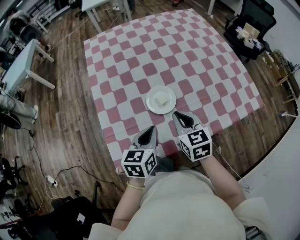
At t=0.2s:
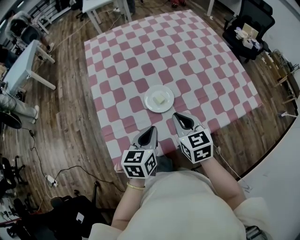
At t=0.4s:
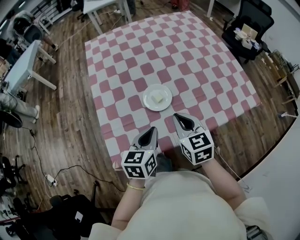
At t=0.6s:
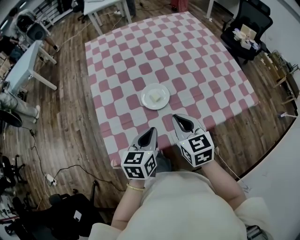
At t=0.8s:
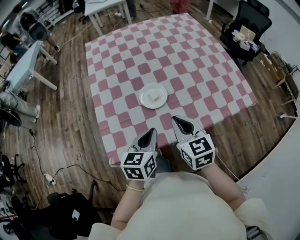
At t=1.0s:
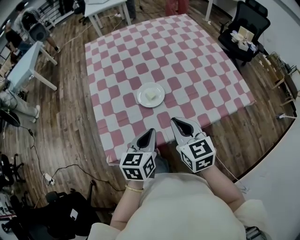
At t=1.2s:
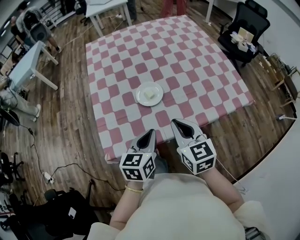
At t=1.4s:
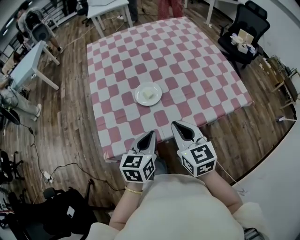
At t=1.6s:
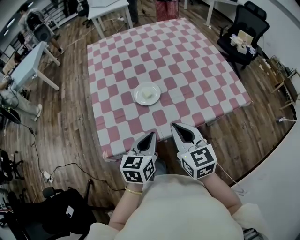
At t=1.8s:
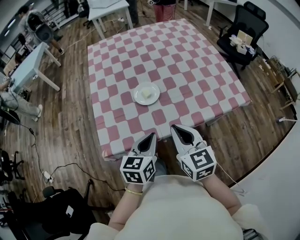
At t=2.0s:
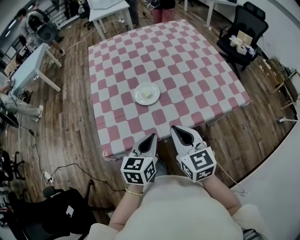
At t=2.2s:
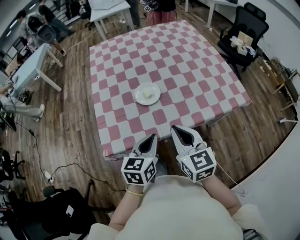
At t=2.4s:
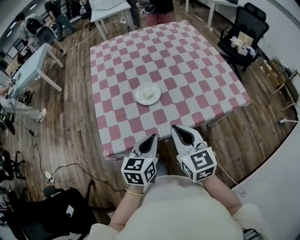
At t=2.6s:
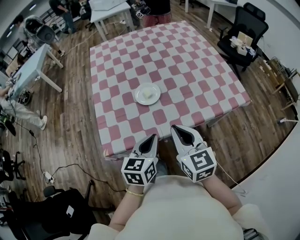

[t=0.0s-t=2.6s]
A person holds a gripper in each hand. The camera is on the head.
t=0.0s to t=1.2s: The right gripper moves backward, upward and to the right, approximately 15 cm; the left gripper heads backward and to the right, covering about 10 cm.
t=1.2s to t=2.6s: Both grippers move backward, some 5 cm.

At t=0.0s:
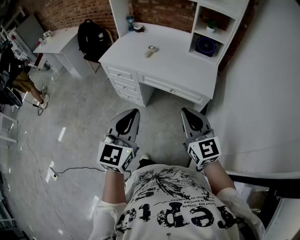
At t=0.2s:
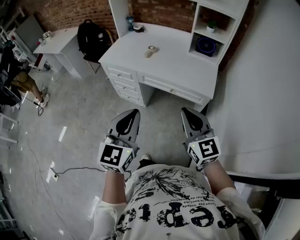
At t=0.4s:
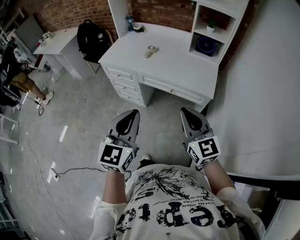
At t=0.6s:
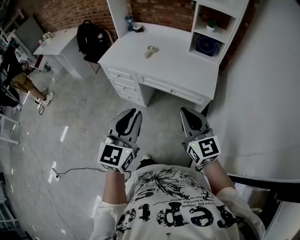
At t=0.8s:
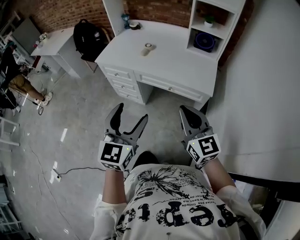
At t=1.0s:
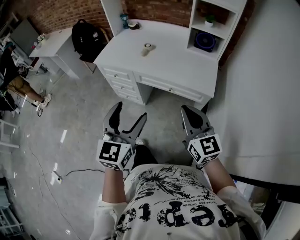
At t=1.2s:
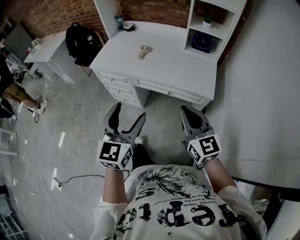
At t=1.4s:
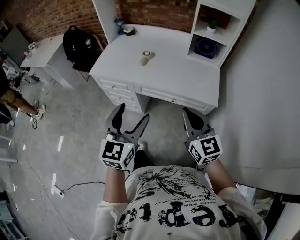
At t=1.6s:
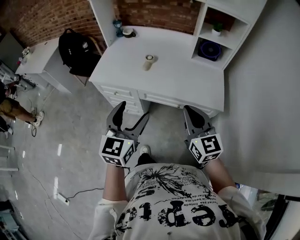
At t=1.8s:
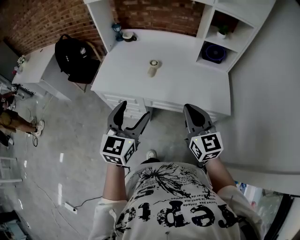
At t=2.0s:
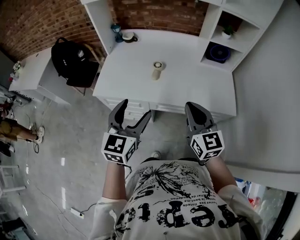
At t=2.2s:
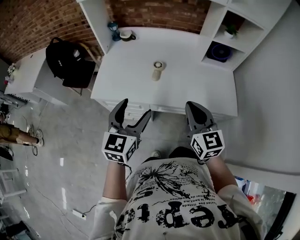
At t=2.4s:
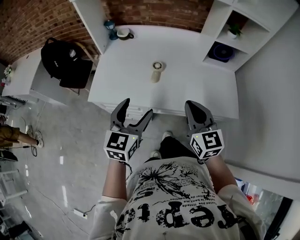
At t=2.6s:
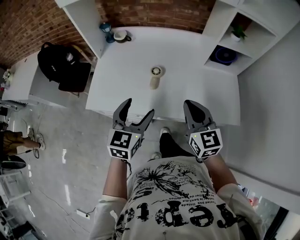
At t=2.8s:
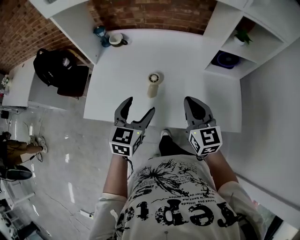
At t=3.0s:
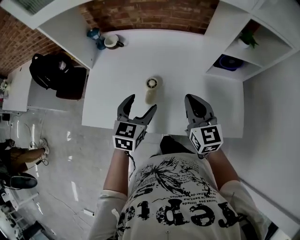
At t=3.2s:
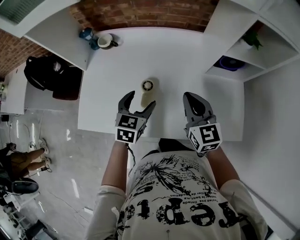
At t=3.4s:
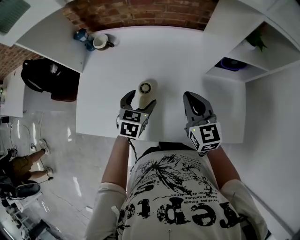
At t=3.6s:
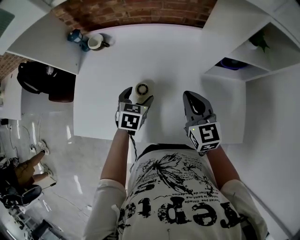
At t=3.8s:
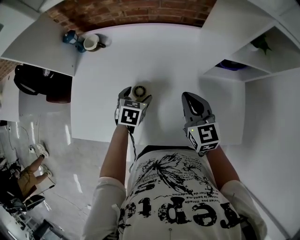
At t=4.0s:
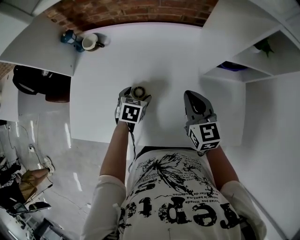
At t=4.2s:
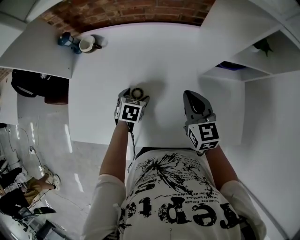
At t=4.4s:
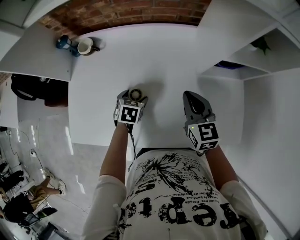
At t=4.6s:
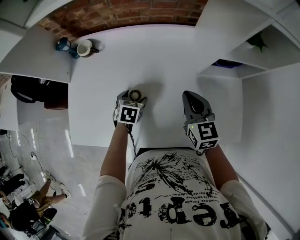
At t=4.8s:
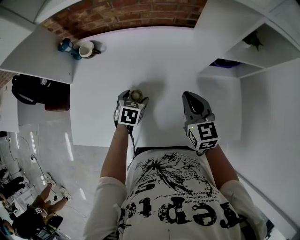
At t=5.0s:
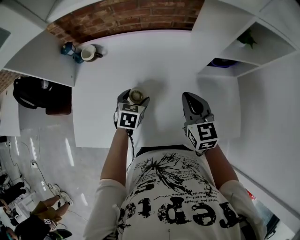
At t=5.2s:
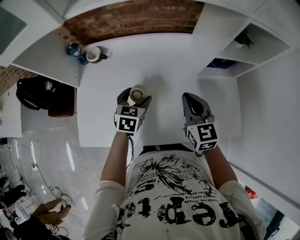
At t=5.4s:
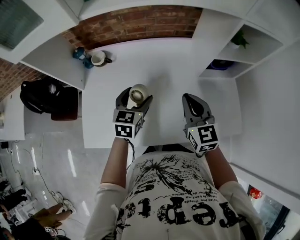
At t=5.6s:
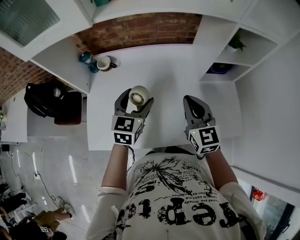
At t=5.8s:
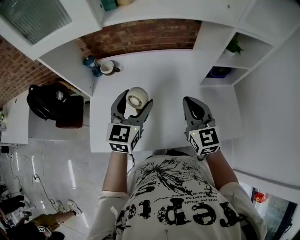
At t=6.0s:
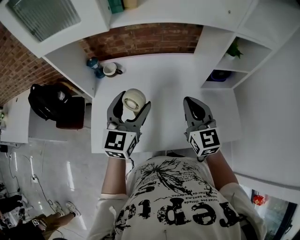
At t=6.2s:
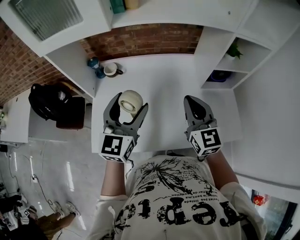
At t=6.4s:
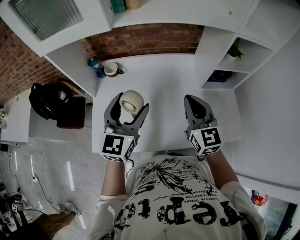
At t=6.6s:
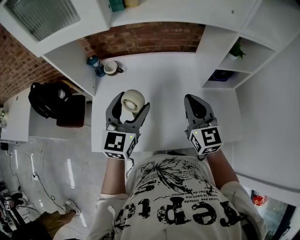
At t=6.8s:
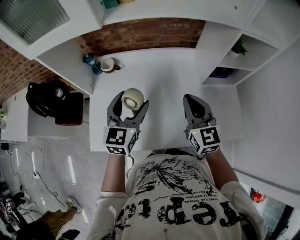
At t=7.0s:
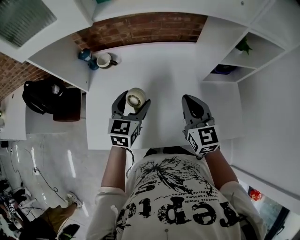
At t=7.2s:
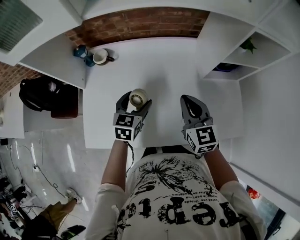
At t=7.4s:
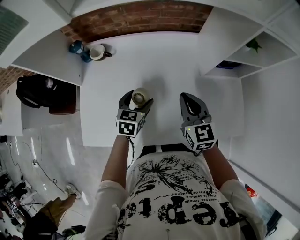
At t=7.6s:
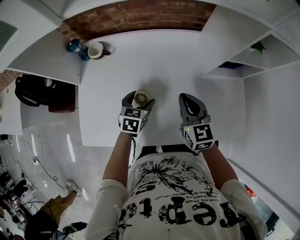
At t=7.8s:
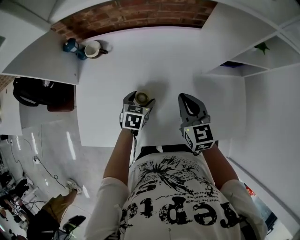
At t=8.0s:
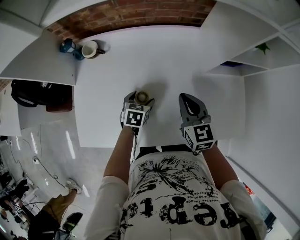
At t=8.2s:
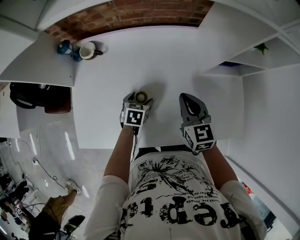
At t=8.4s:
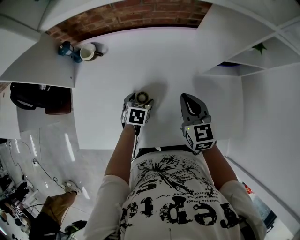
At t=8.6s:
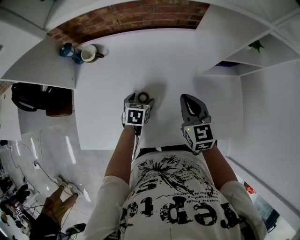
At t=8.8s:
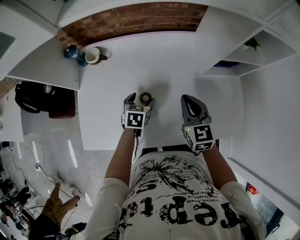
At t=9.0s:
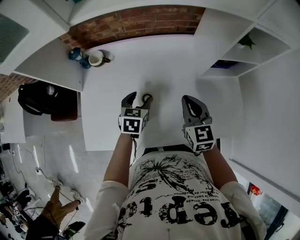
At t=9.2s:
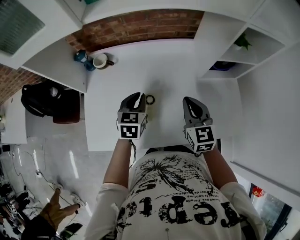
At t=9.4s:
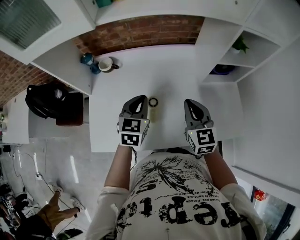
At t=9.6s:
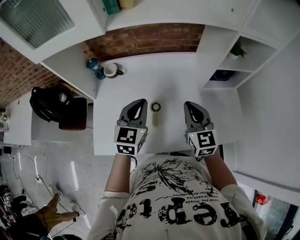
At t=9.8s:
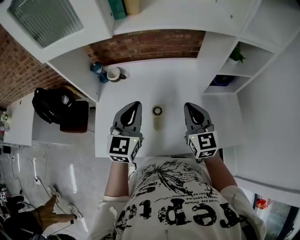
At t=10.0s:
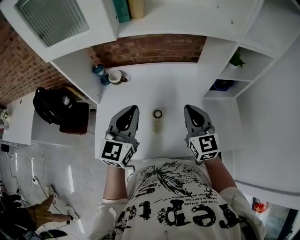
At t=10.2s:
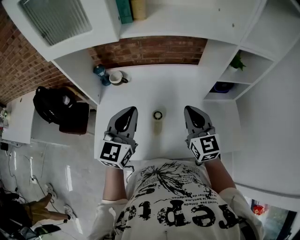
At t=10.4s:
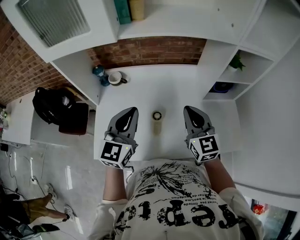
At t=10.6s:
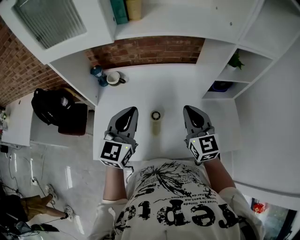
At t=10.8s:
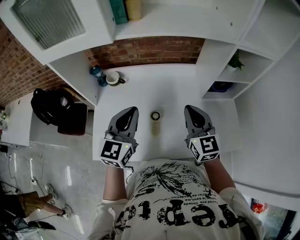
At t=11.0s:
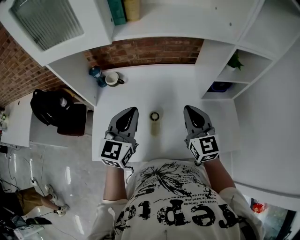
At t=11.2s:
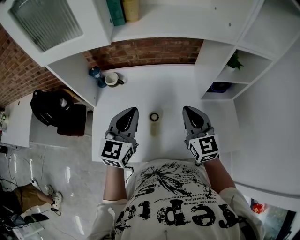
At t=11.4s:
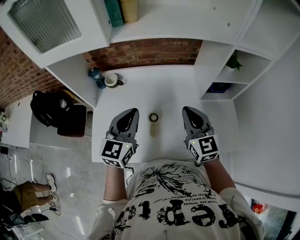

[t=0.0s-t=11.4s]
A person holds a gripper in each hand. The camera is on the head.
t=0.0s to t=1.4s: Both grippers move forward, roughly 15 cm. The left gripper opens.
t=1.4s to t=2.8s: The pair of grippers is taken forward, about 50 cm. The left gripper turns by some 20 degrees.
t=2.8s to t=4.2s: The right gripper shifts about 20 cm forward and downward, while the left gripper shifts approximately 35 cm downward and forward, and tilts its fingers roughly 40 degrees downward.
t=4.2s to t=5.6s: The left gripper goes about 25 cm upward, and points its fingers roughly 40 degrees further upward, while the right gripper heads upward, backward and to the left, covering approximately 15 cm.
t=5.6s to t=7.2s: The left gripper shifts about 10 cm downward. The right gripper changes place by about 5 cm.
t=7.2s to t=8.6s: The left gripper heads downward, covering about 15 cm, and turns by some 30 degrees. Meanwhile the right gripper moves downward, approximately 5 cm.
t=8.6s to t=10.0s: The left gripper goes some 35 cm upward, tips its fingers upward by roughly 50 degrees, and closes its fingers, while the right gripper heads upward and backward, covering about 15 cm.
t=10.0s to t=11.4s: The grippers stay close to where they were, moving slightly.

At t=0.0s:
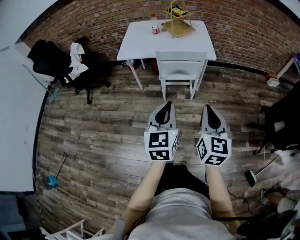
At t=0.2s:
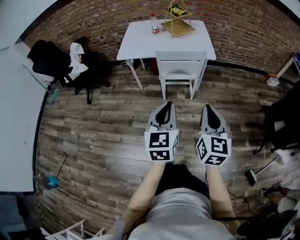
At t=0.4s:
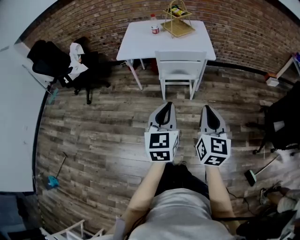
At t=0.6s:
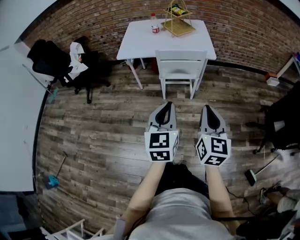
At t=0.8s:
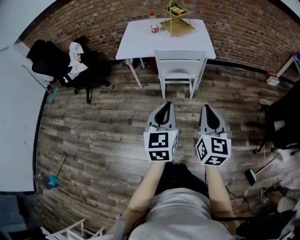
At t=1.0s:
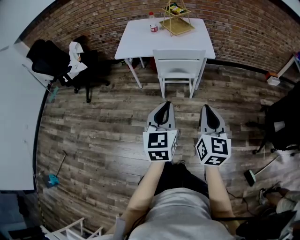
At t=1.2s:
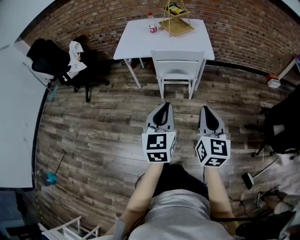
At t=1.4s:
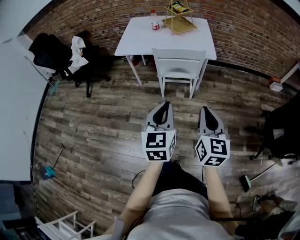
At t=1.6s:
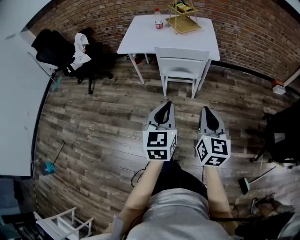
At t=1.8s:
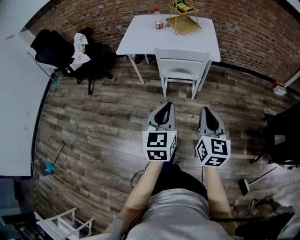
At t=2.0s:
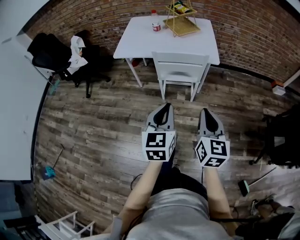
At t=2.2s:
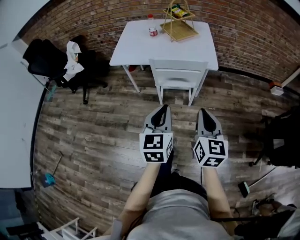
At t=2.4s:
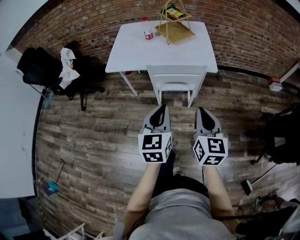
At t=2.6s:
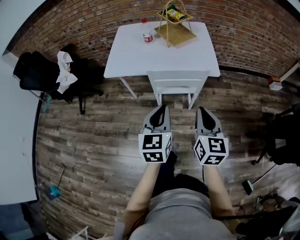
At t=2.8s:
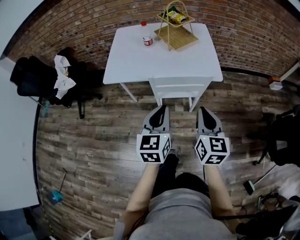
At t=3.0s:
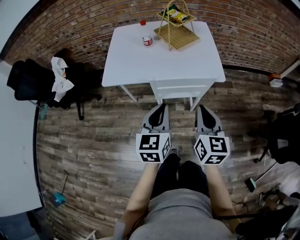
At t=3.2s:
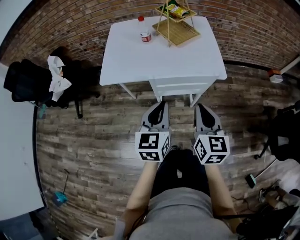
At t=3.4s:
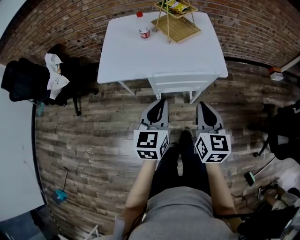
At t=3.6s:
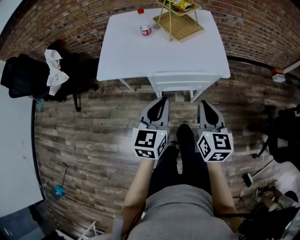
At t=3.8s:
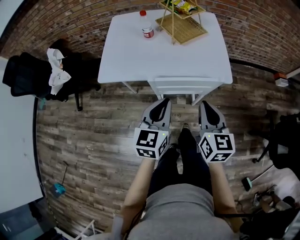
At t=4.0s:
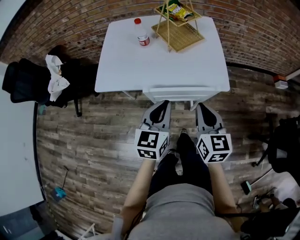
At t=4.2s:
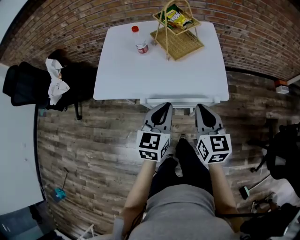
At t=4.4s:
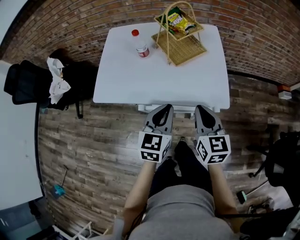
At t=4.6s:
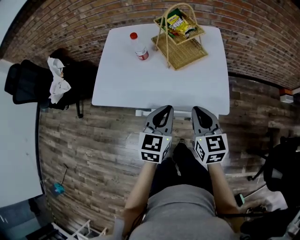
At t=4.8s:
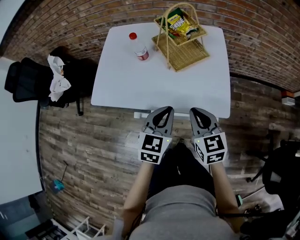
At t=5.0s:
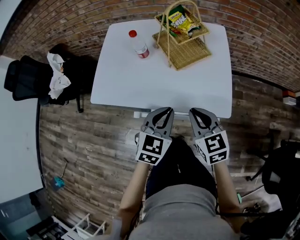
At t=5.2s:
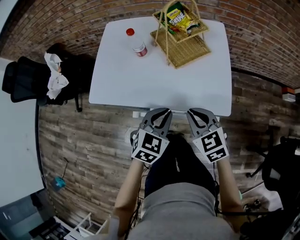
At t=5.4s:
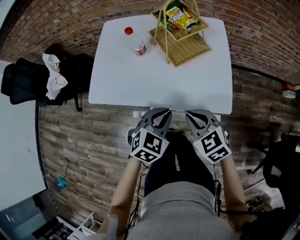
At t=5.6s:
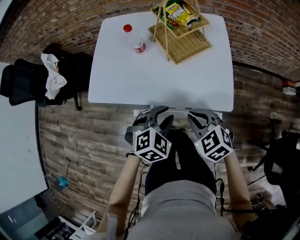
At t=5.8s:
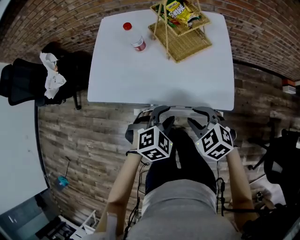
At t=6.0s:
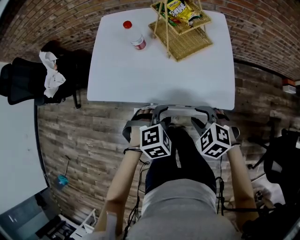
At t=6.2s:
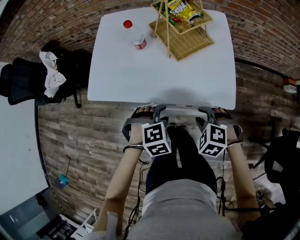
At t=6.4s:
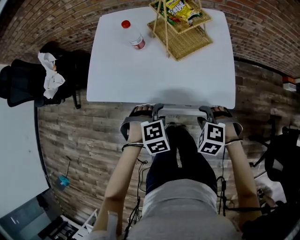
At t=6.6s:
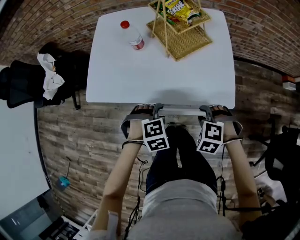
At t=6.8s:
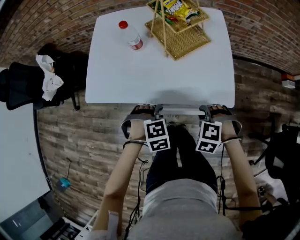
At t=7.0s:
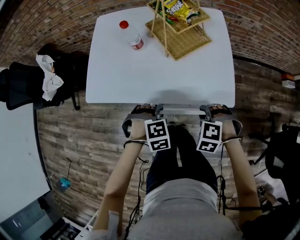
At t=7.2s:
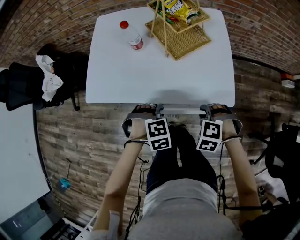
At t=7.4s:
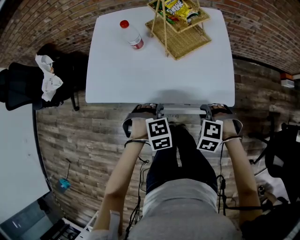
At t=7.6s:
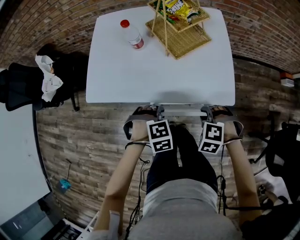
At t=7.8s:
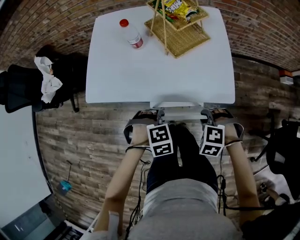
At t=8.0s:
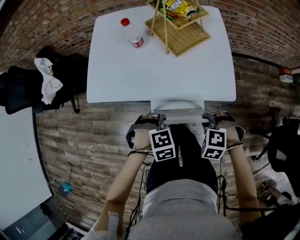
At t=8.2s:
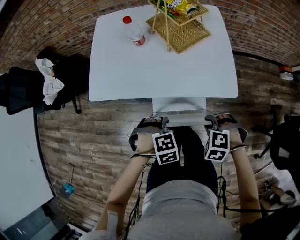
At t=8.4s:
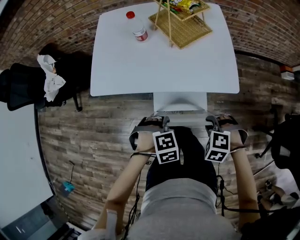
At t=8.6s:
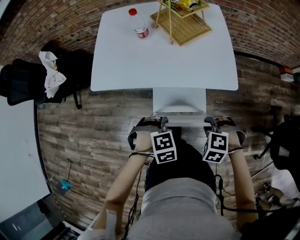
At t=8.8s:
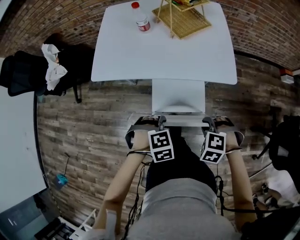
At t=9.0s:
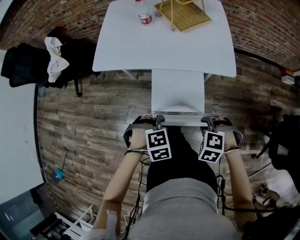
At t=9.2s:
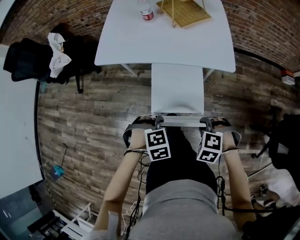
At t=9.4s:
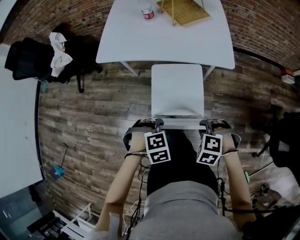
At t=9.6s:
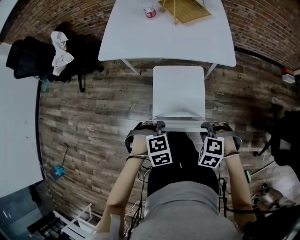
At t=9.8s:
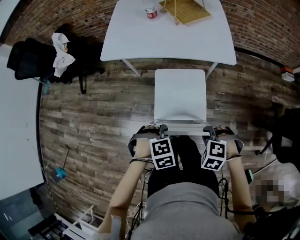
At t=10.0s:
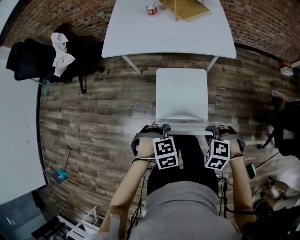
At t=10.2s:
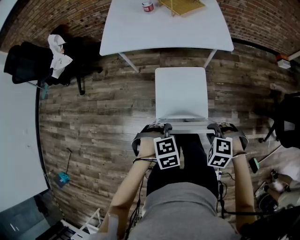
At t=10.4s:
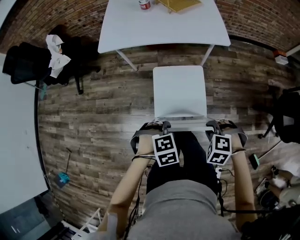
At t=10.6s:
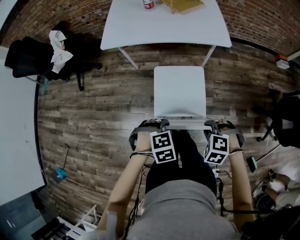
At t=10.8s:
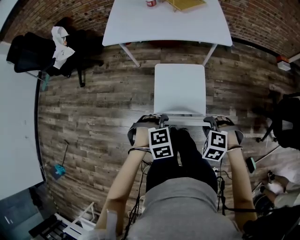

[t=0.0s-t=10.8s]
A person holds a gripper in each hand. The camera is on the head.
t=0.0s to t=1.6s: The left gripper moves approximately 5 cm; the right gripper shifts by roughly 5 cm.
t=1.6s to t=3.0s: The grippers both shift forward by some 25 cm.
t=3.0s to t=4.6s: The grippers both shift forward by about 20 cm.
t=4.6s to t=6.2s: The grippers both shift downward by some 10 cm. The right gripper points its fingers some 40 degrees further downward, and opens, while the left gripper tips its fingers downward by approximately 50 degrees, and opens its fingers.
t=6.2s to t=7.8s: The left gripper closes its fingers.
t=7.8s to t=9.2s: The right gripper moves about 20 cm. The left gripper ends up approximately 25 cm from where it was.
t=9.2s to t=10.8s: The left gripper shifts by roughly 15 cm; the right gripper moves some 15 cm.
